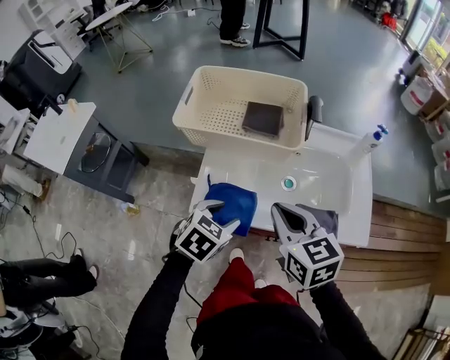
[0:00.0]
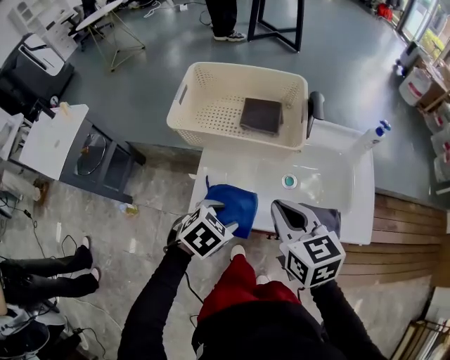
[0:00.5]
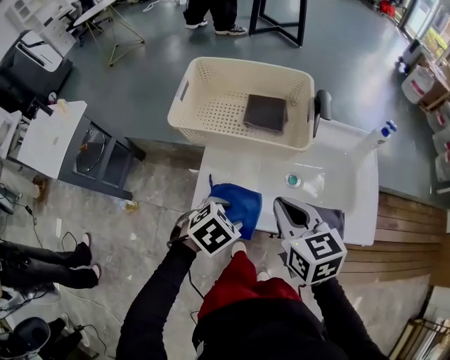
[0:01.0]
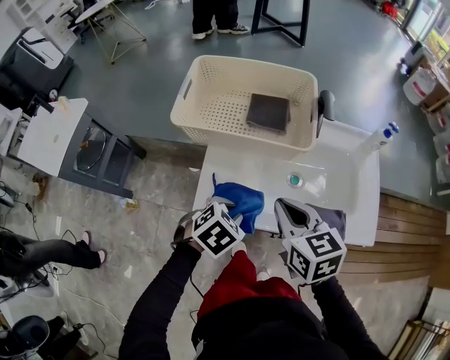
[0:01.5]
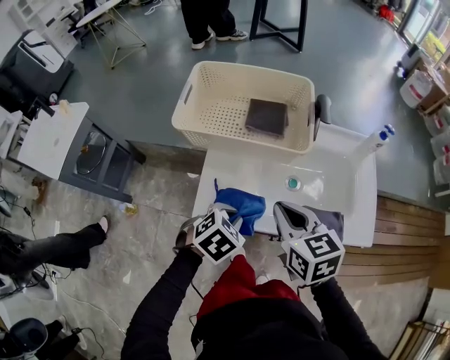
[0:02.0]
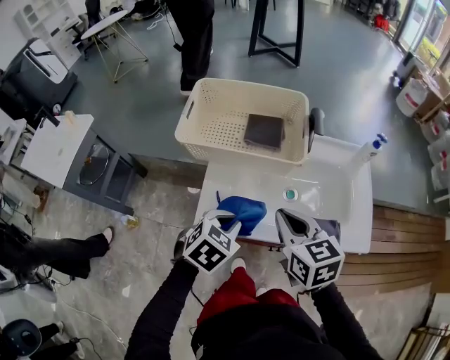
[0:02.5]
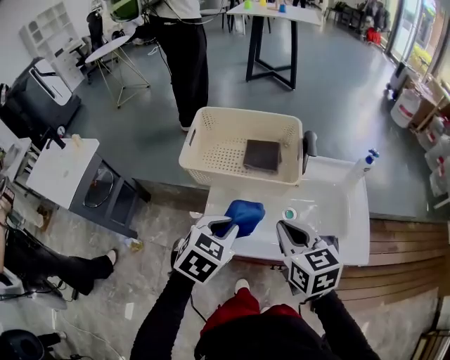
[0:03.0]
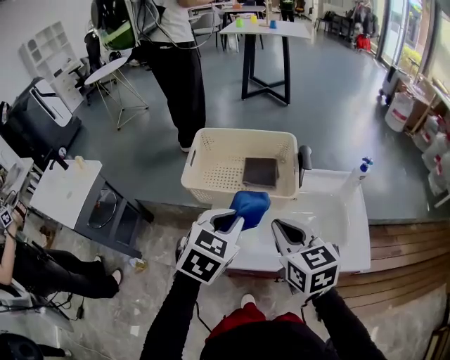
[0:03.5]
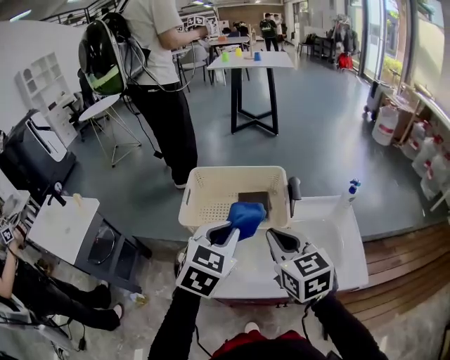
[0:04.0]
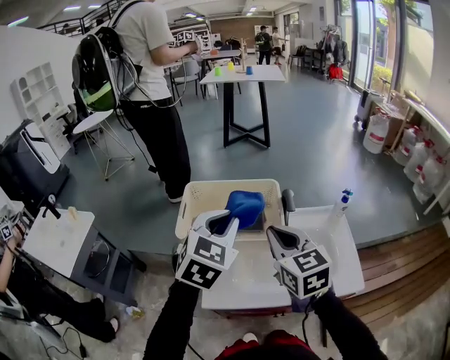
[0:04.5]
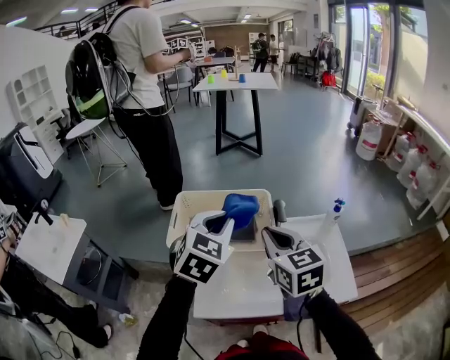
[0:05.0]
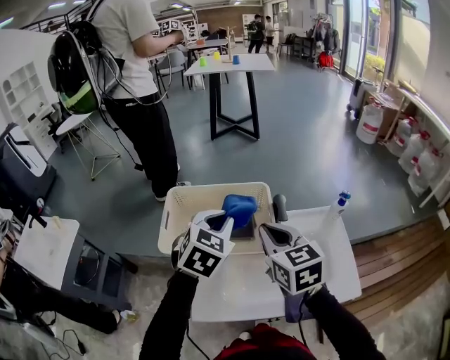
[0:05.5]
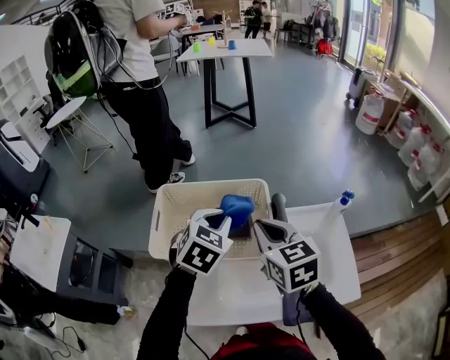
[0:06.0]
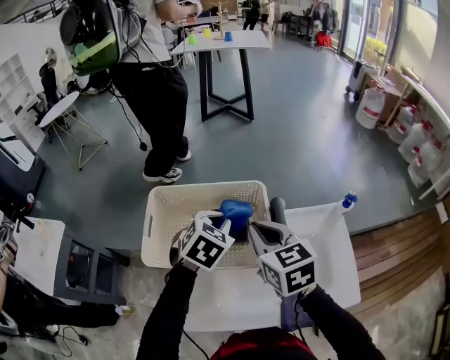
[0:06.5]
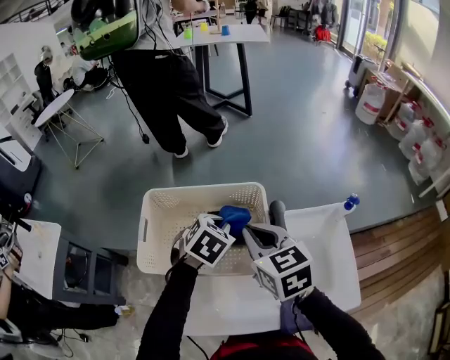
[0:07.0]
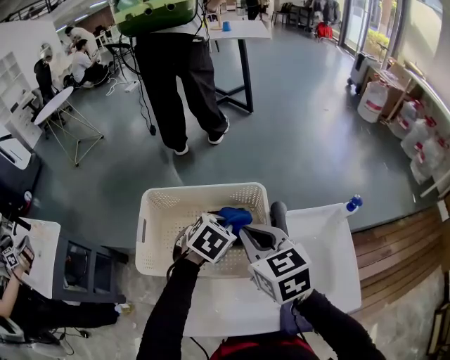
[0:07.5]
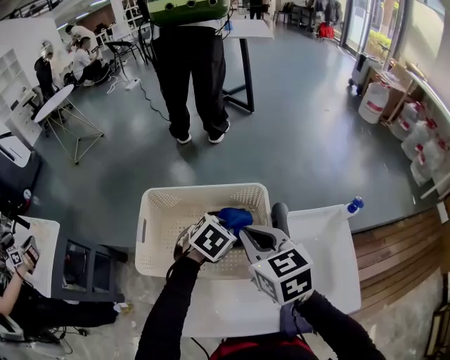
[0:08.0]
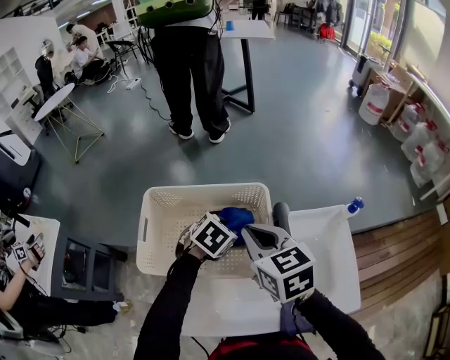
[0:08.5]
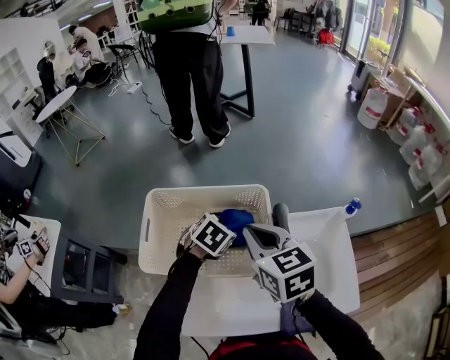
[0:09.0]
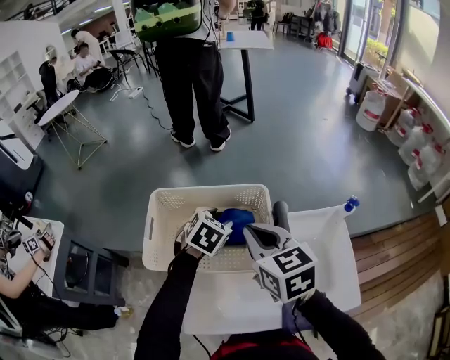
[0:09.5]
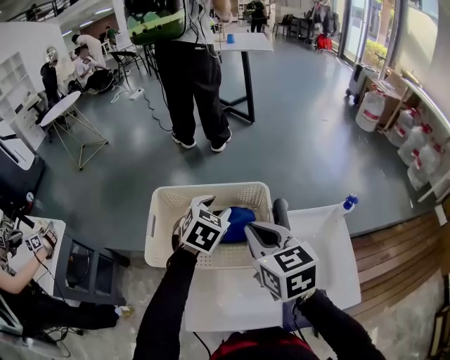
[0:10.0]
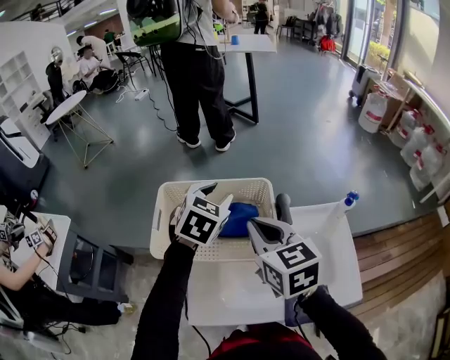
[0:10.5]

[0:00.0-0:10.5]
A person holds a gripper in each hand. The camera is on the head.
0:00.0 to 0:02.0: The left gripper closes up.
0:02.0 to 0:04.0: The left gripper travels upward and forward by about 25 cm, and points its fingers roughly 30 degrees further upward, while the right gripper travels upward and forward by some 15 cm.
0:04.0 to 0:06.5: The right gripper goes about 15 cm forward. Meanwhile the left gripper goes roughly 20 cm forward and downward.
0:06.5 to 0:08.5: The left gripper goes roughly 10 cm downward, and opens its fingers.
0:08.5 to 0:10.5: The left gripper travels upward by some 15 cm, and changes its angle by some 30 degrees, while the right gripper changes place by some 5 cm.

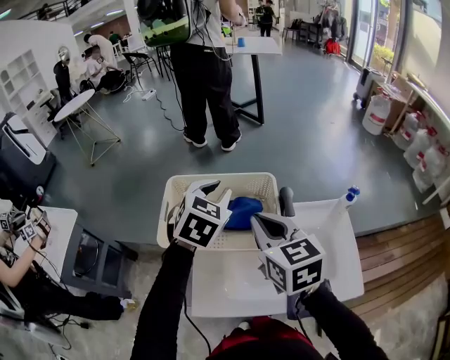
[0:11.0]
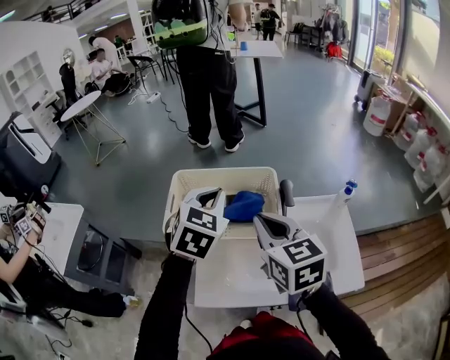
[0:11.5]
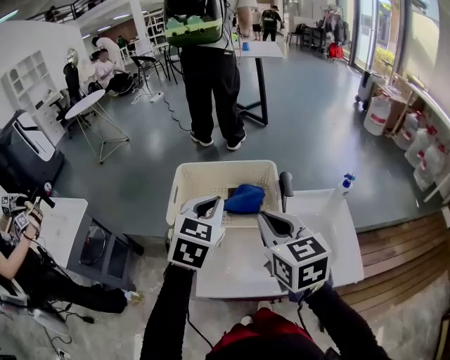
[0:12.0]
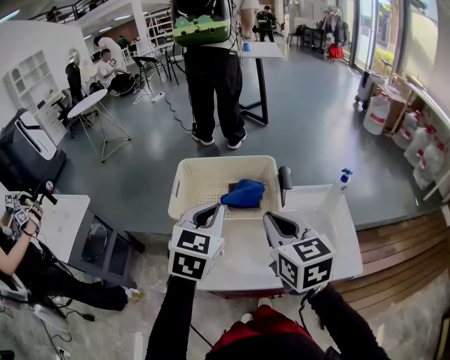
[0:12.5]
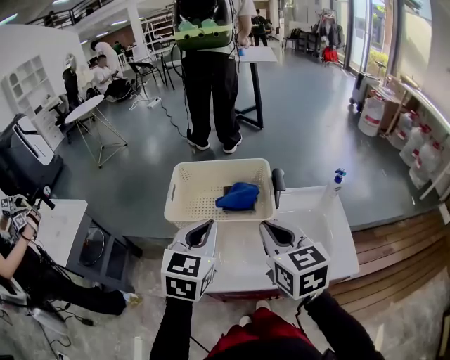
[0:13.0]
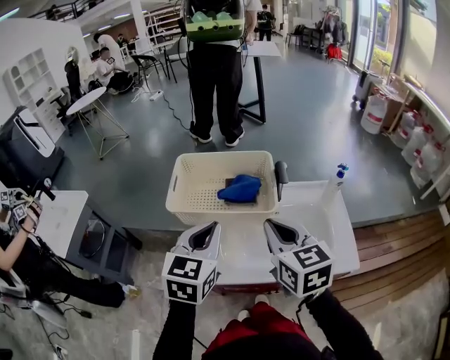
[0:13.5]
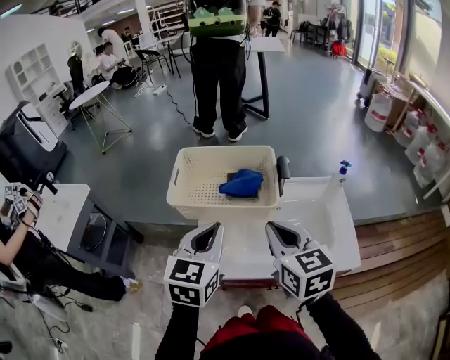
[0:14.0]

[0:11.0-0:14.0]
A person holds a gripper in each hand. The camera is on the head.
0:11.0 to 0:12.5: The left gripper is displaced backward by about 15 cm, and closes. The right gripper heads backward, covering roughly 10 cm.
0:12.5 to 0:14.0: The right gripper moves approximately 5 cm, while the left gripper goes some 10 cm backward.

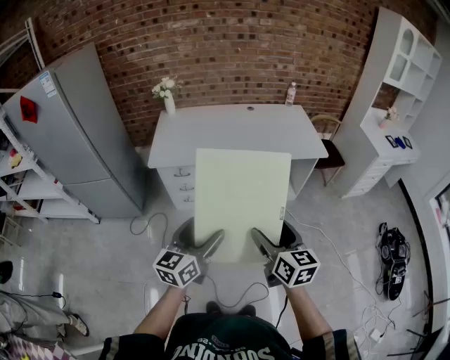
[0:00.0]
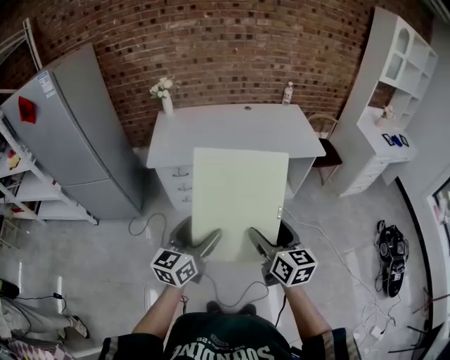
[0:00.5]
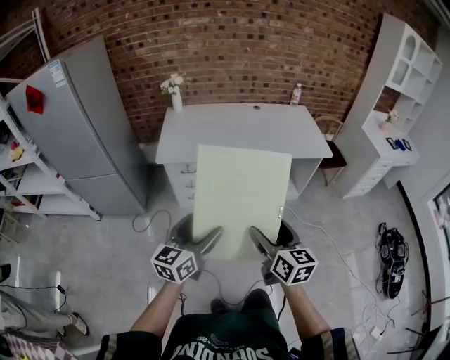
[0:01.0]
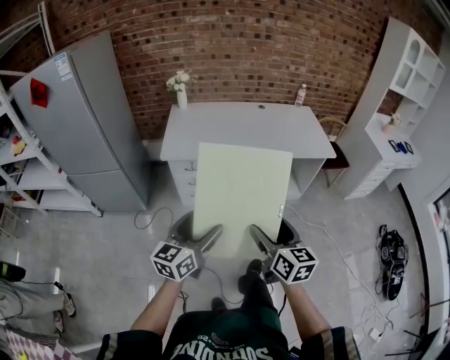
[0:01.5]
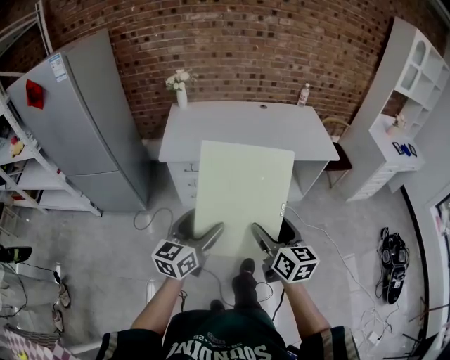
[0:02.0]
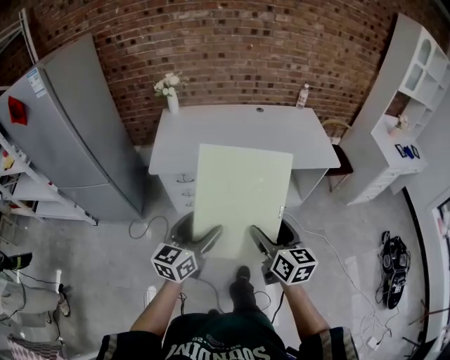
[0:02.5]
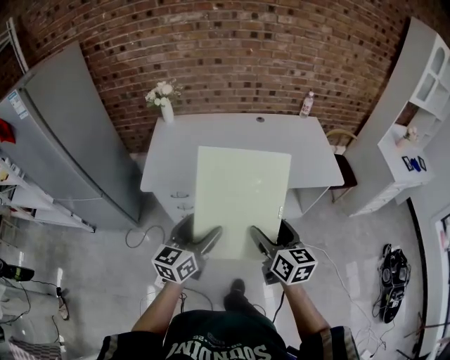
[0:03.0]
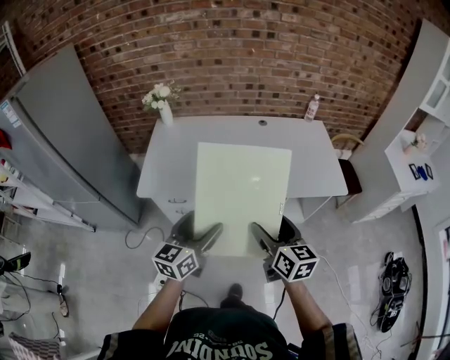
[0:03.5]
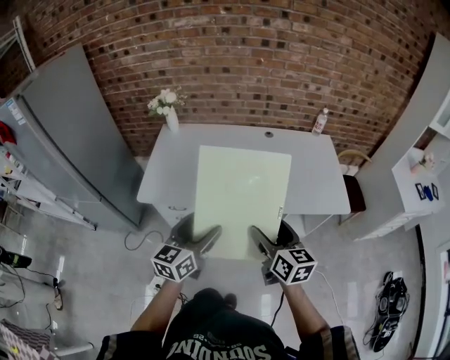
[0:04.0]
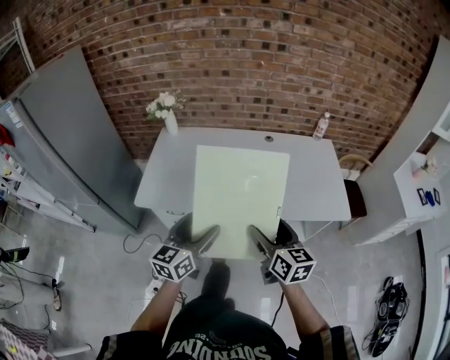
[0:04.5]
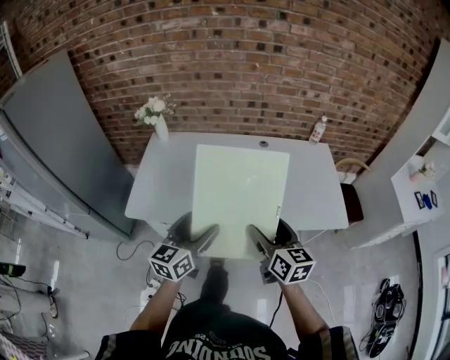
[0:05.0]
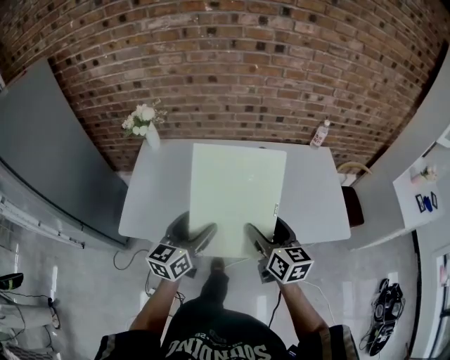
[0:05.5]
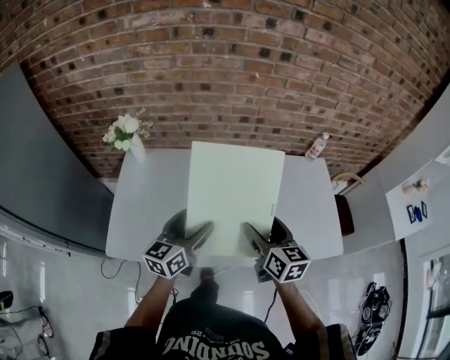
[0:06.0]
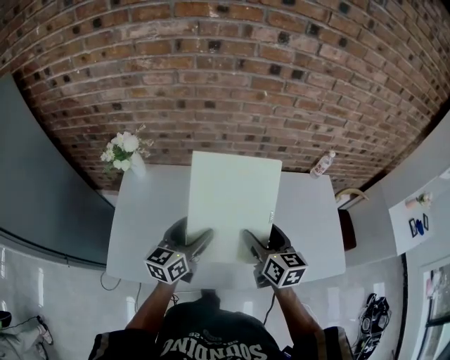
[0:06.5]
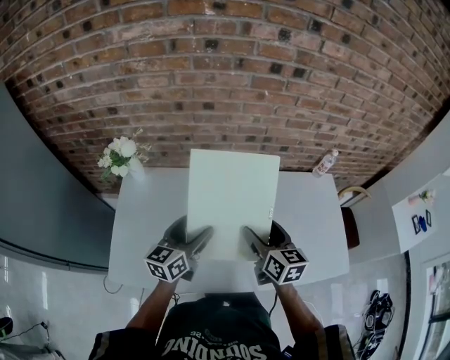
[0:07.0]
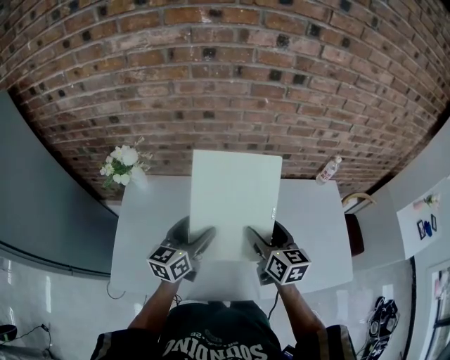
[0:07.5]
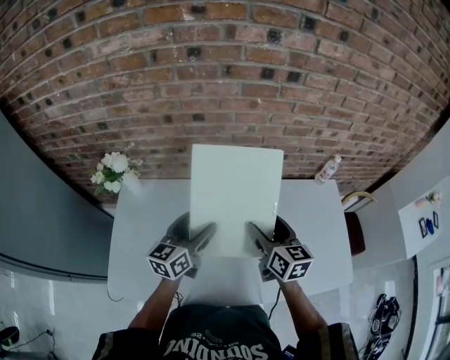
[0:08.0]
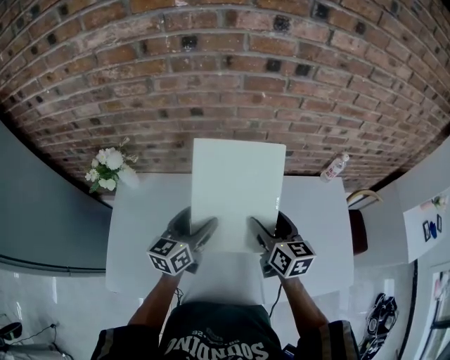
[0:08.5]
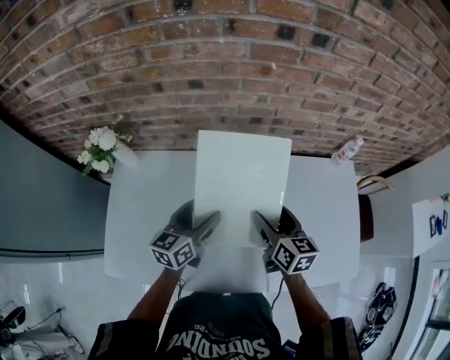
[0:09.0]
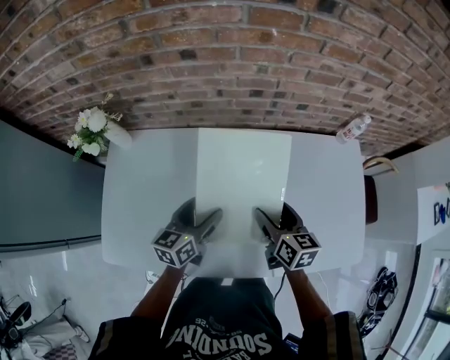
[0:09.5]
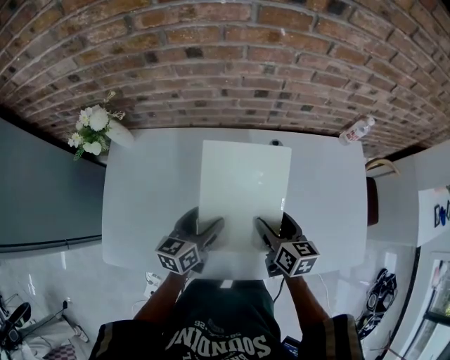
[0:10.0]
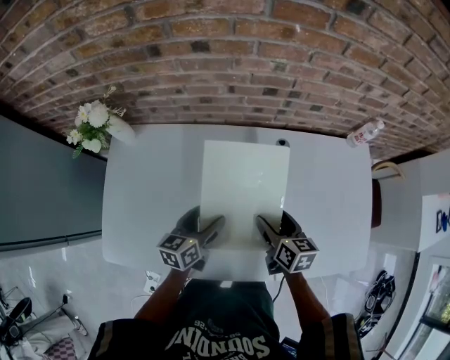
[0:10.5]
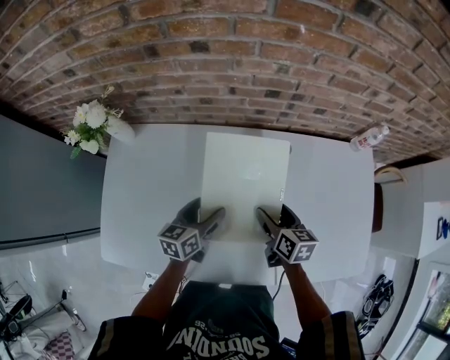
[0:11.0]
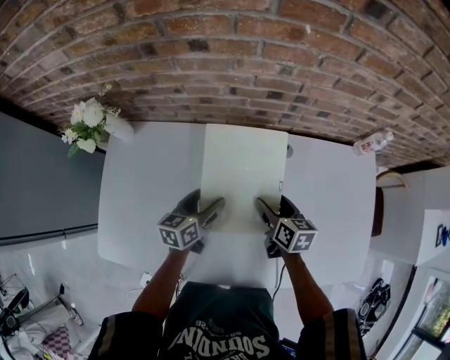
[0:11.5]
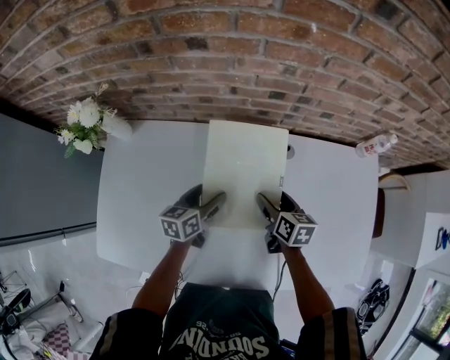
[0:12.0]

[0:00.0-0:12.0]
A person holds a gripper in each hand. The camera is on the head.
0:00.0 to 0:02.0: Both grippers move to the left, some 10 cm.
0:02.0 to 0:04.0: Both grippers move forward, approximately 35 cm.
0:04.0 to 0:06.0: Both grippers travel together forward, some 30 cm.
0:06.0 to 0:08.0: Both grippers travel together forward, roughly 15 cm.
0:08.0 to 0:10.0: Both grippers move downward, approximately 15 cm.
0:10.0 to 0:12.0: Both grippers travel together forward and downward, about 15 cm.

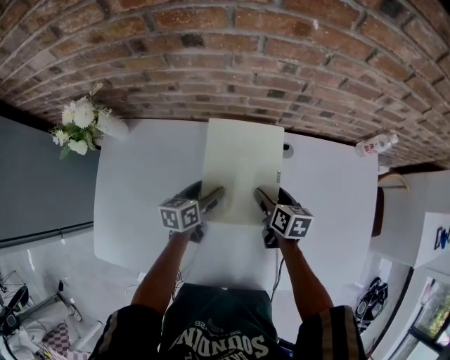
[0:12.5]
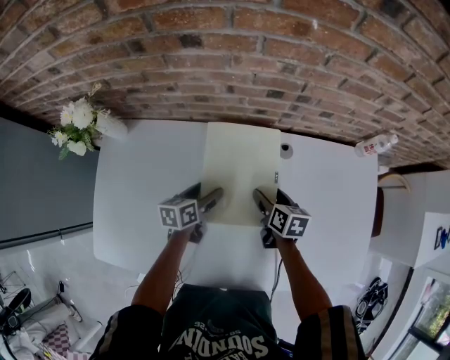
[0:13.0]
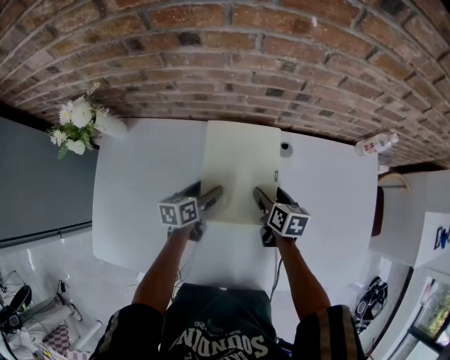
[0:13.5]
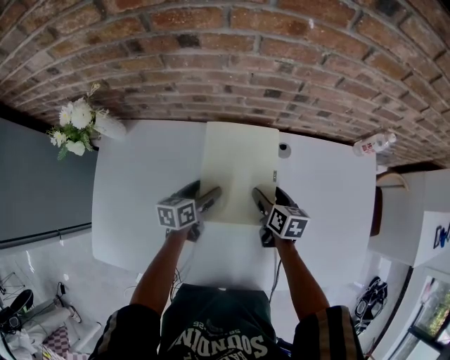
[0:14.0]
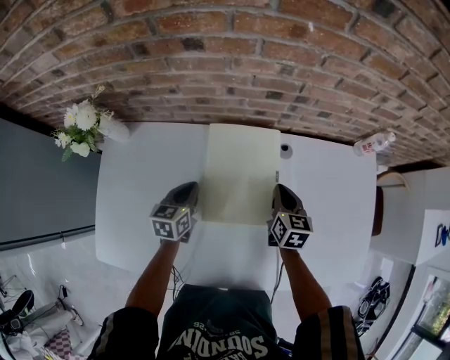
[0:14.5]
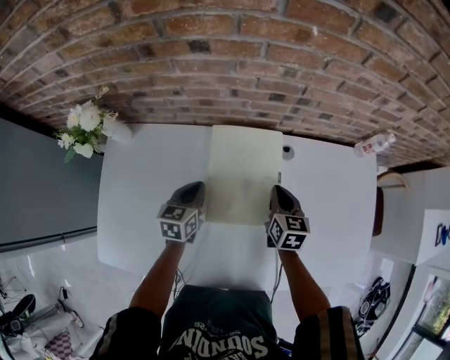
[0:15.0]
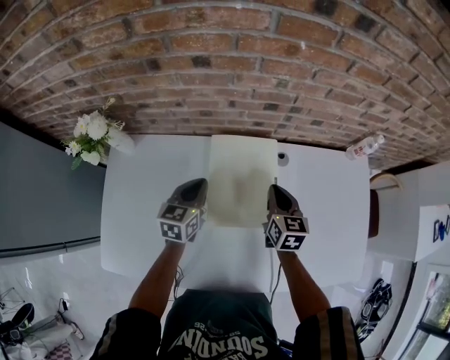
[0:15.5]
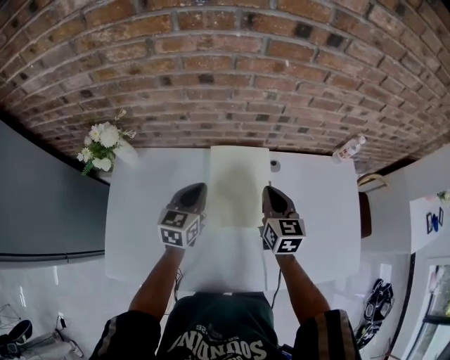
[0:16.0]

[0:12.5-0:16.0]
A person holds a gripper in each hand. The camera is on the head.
0:12.5 to 0:14.5: The right gripper changes its angle by about 20 degrees, and closes up, while the left gripper travels to the left by some 5 cm, and closes.
0:14.5 to 0:16.0: The right gripper moves upward and to the left, some 15 cm. The left gripper is displaced upward by roughly 15 cm.
